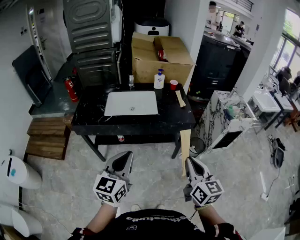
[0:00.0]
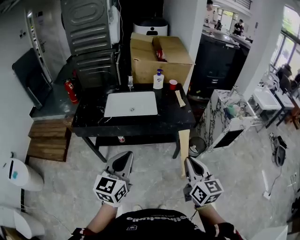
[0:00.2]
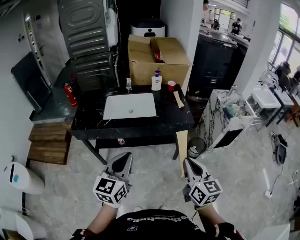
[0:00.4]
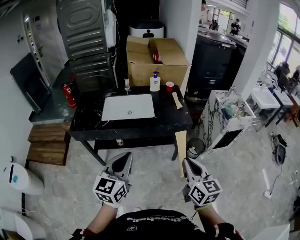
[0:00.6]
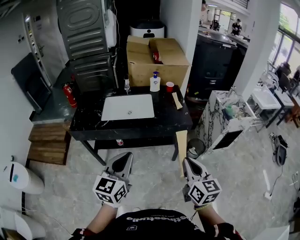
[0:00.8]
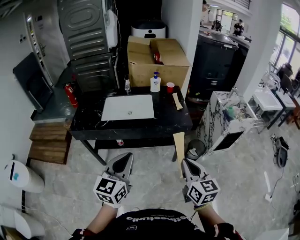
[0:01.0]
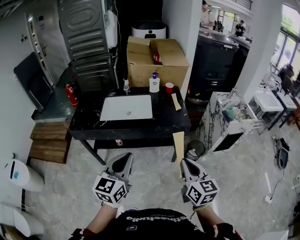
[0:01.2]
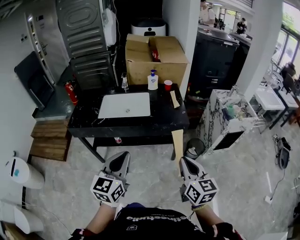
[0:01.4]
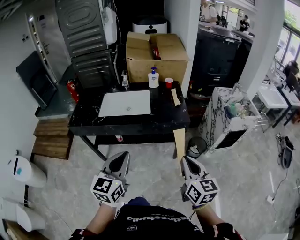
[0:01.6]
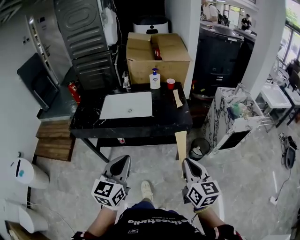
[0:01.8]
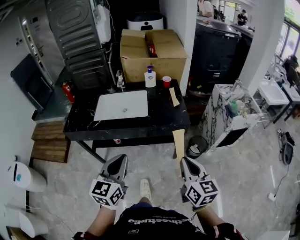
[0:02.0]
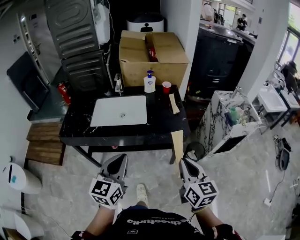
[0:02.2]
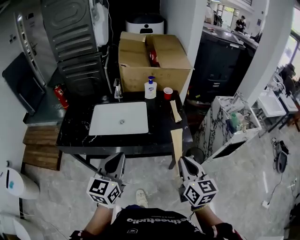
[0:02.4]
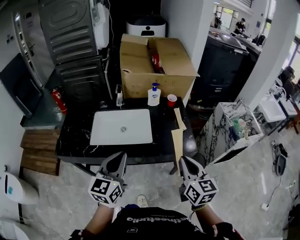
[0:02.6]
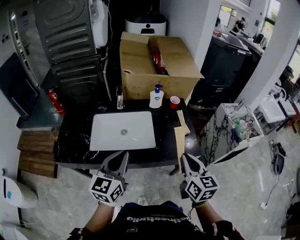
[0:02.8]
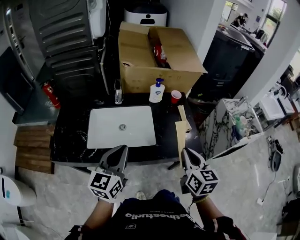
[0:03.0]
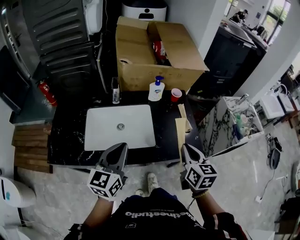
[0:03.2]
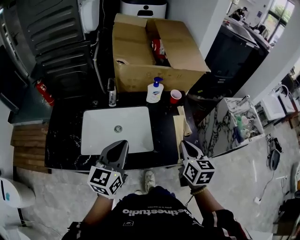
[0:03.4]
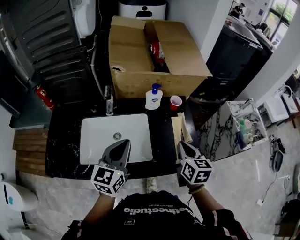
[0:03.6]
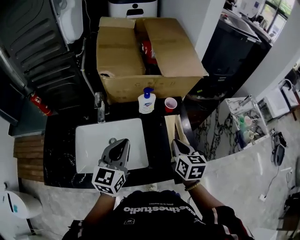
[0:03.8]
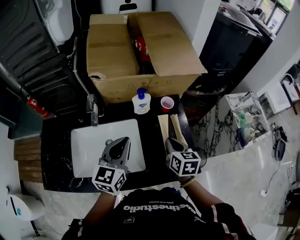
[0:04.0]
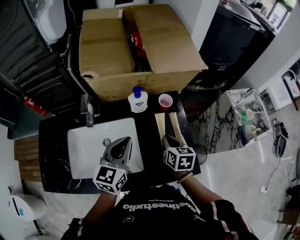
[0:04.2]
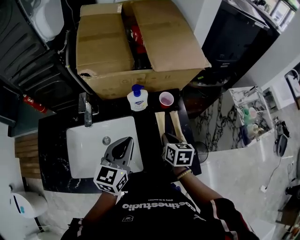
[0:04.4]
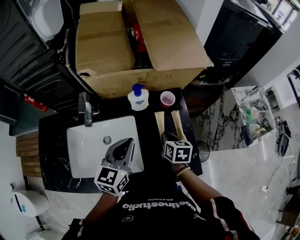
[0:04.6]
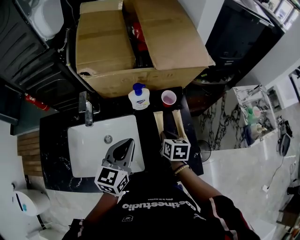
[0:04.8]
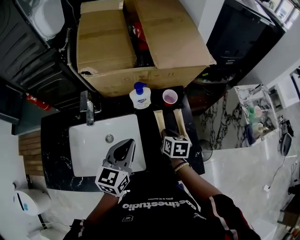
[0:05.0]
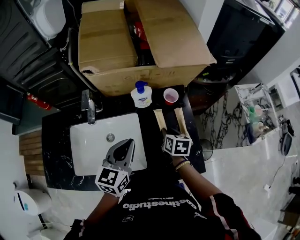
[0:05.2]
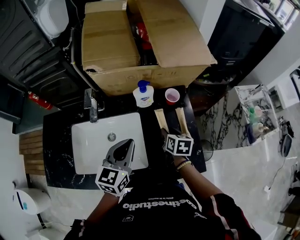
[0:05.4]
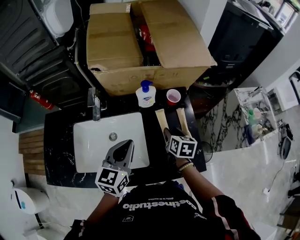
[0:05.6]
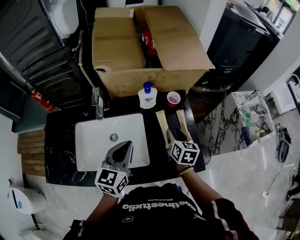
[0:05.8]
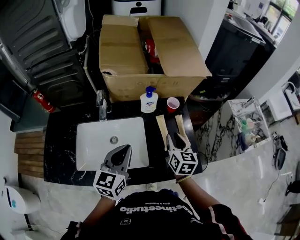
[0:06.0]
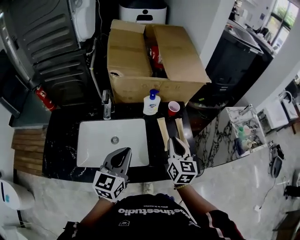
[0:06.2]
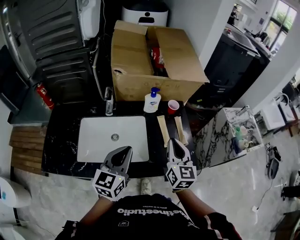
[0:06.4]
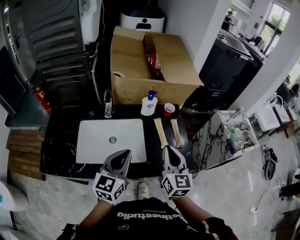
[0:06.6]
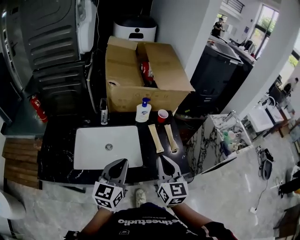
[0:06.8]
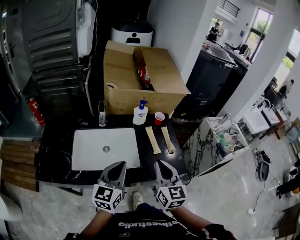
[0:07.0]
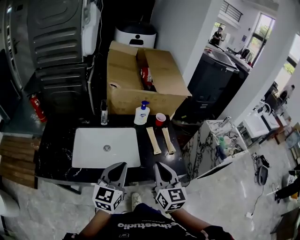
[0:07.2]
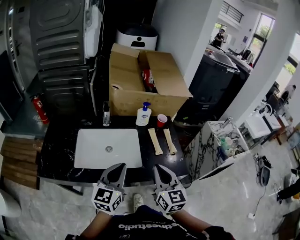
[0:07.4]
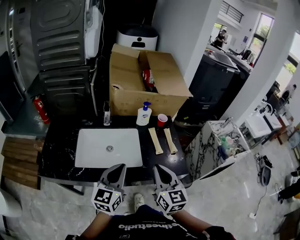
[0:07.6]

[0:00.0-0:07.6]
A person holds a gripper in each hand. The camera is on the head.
0:00.0 to 0:01.6: The grippers both shift to the right by about 10 cm.
0:01.6 to 0:03.0: The two grippers go some 35 cm forward.
0:03.0 to 0:04.6: The right gripper moves forward and downward, roughly 35 cm, and swivels some 30 degrees. The left gripper goes roughly 30 cm forward and to the right.
0:04.6 to 0:06.0: The left gripper goes roughly 10 cm backward and to the left, while the right gripper goes roughly 10 cm upward and backward, rotates approximately 20 degrees, and opens.
0:06.0 to 0:07.6: The right gripper moves backward and upward, about 25 cm, turns by about 20 degrees, and closes up; the left gripper shifts about 15 cm backward.

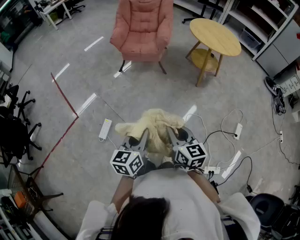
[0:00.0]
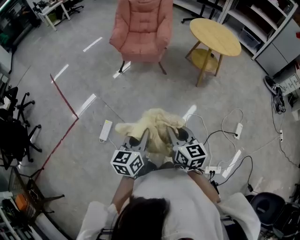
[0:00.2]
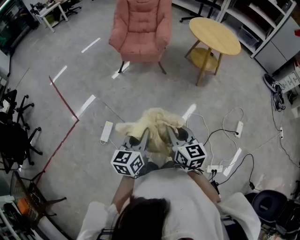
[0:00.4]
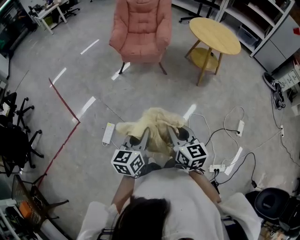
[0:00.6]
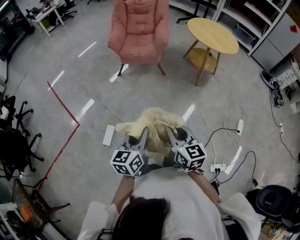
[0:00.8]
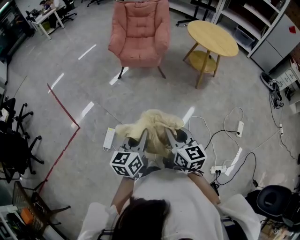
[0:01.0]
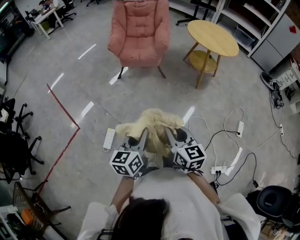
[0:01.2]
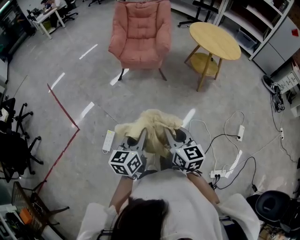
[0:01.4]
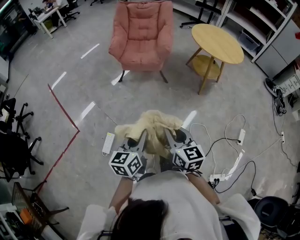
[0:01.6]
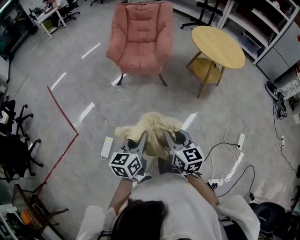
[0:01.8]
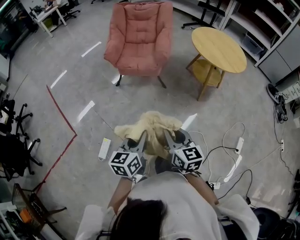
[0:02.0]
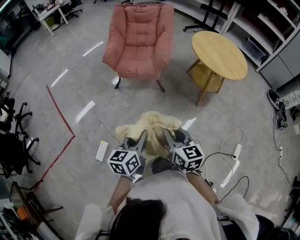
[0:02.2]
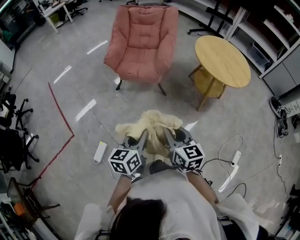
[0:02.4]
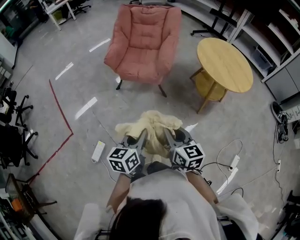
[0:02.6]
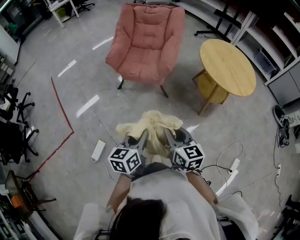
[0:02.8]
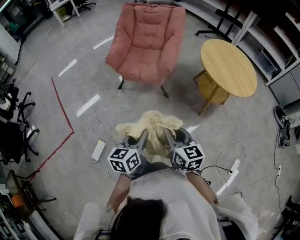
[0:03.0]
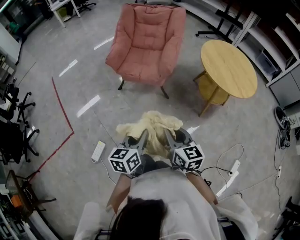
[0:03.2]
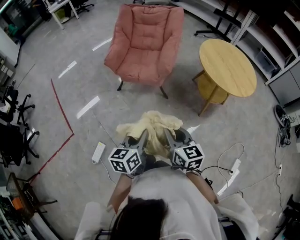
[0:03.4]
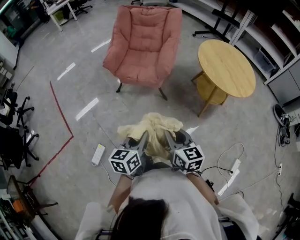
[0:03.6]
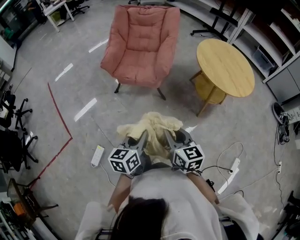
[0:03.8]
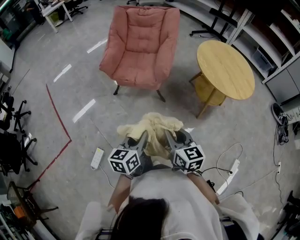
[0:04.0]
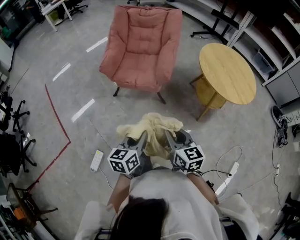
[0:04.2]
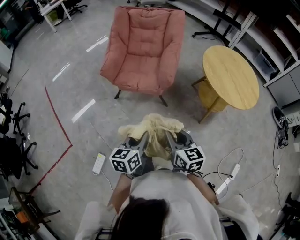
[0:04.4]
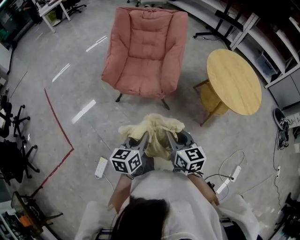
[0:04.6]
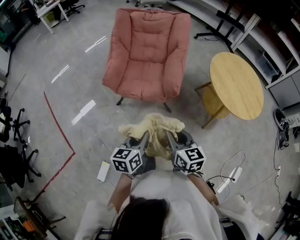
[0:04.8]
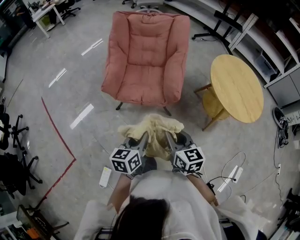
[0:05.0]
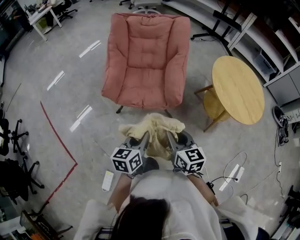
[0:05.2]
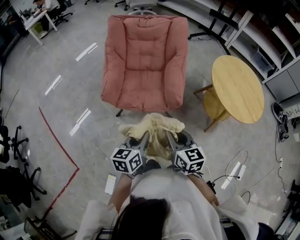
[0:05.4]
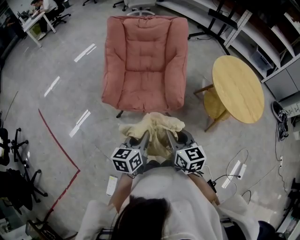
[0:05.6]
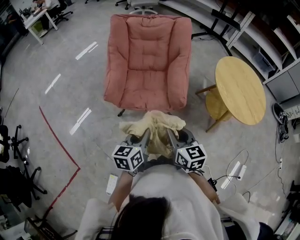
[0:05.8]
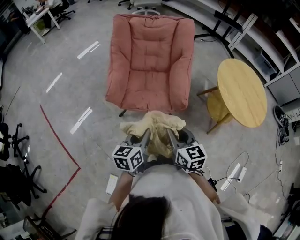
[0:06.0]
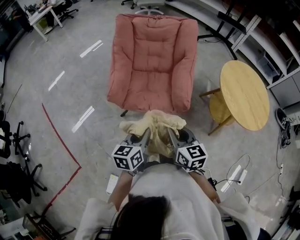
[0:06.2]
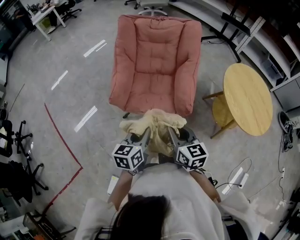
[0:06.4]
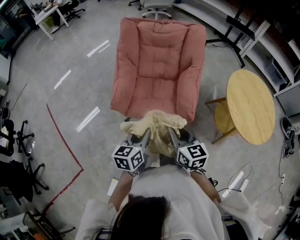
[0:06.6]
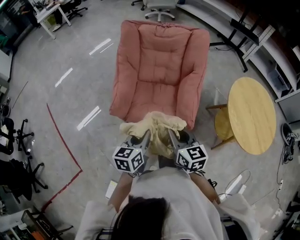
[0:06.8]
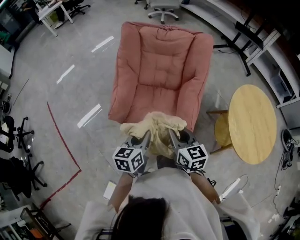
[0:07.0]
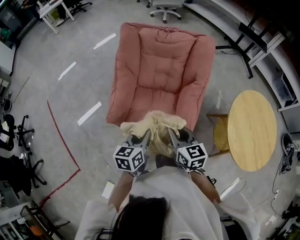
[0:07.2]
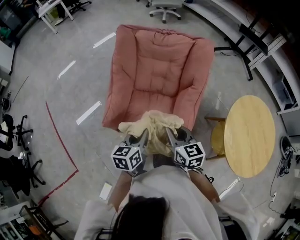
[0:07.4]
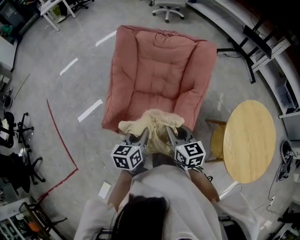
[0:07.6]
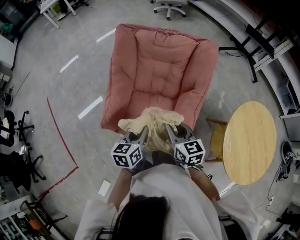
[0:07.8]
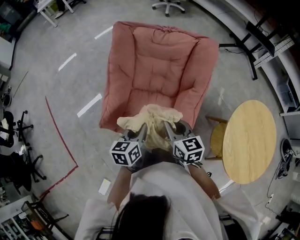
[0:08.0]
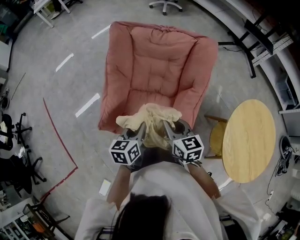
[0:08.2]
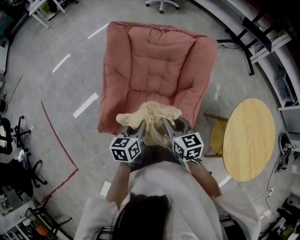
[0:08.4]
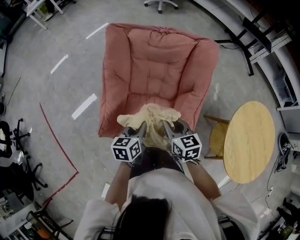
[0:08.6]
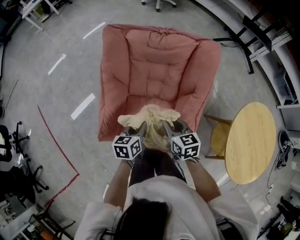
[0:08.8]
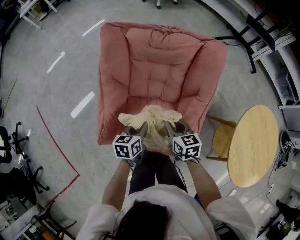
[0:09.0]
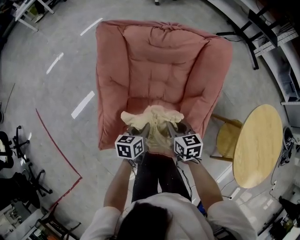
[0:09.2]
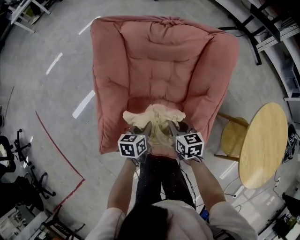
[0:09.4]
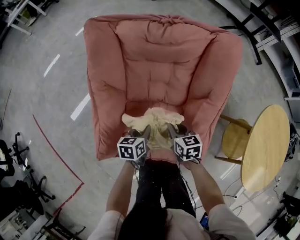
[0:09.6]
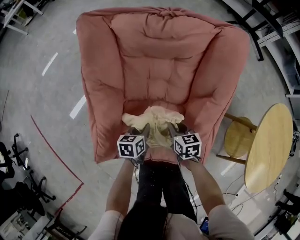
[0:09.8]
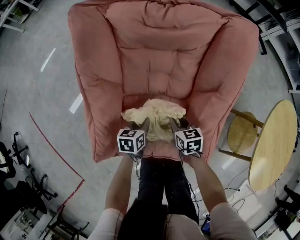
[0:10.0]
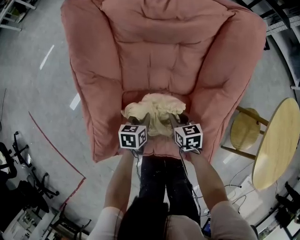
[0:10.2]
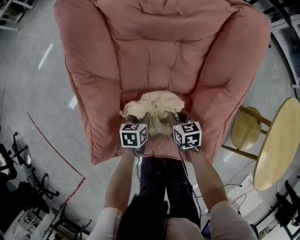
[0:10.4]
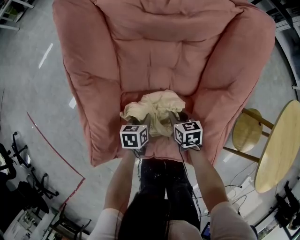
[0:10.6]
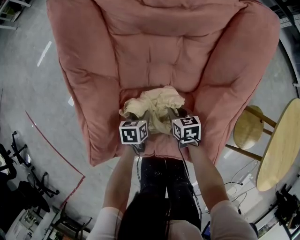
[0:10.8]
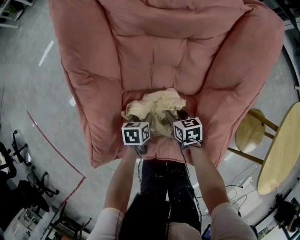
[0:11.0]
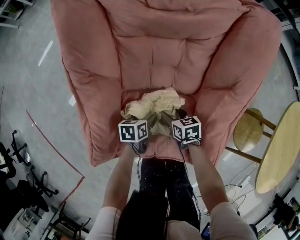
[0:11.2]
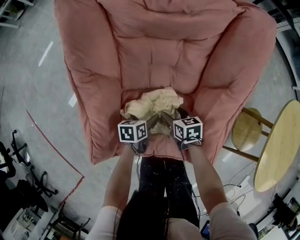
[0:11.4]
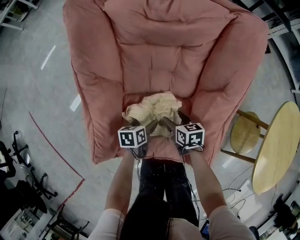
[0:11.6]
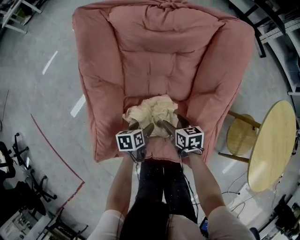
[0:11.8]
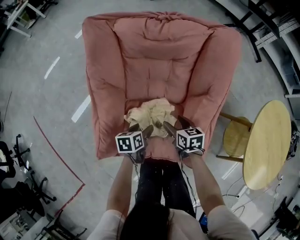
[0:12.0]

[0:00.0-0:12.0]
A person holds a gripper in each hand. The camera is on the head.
0:00.0 to 0:01.6: Both grippers travel together forward and to the left, some 10 cm.
0:01.6 to 0:03.0: The grippers both shift forward and to the right by roughly 25 cm.
0:03.0 to 0:04.4: Both grippers move forward, some 15 cm.
0:04.4 to 0:06.0: Both grippers move forward and to the left, about 25 cm.
0:06.0 to 0:07.6: Both grippers travel together forward, some 30 cm.
0:07.6 to 0:09.0: The grippers both shift forward and downward by approximately 20 cm.
0:09.0 to 0:10.4: Both grippers move downward, about 25 cm.
0:10.4 to 0:12.0: The grippers both shift upward by about 10 cm. The left gripper opens its fingers, while the right gripper opens up.

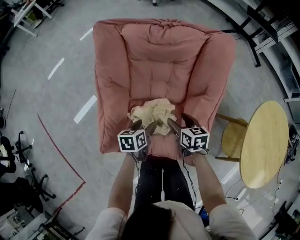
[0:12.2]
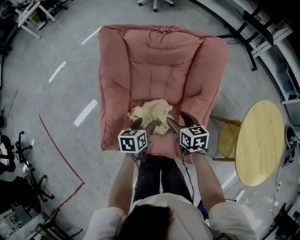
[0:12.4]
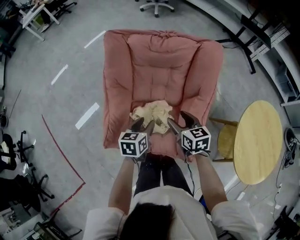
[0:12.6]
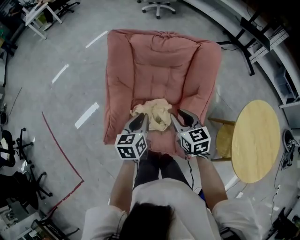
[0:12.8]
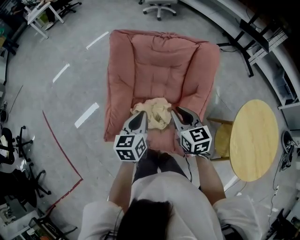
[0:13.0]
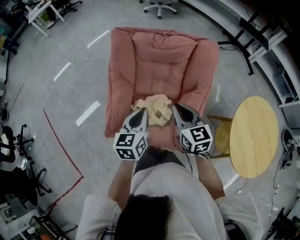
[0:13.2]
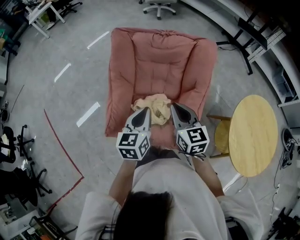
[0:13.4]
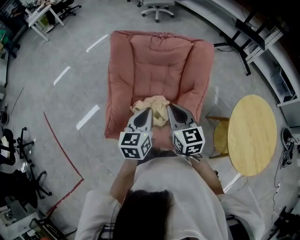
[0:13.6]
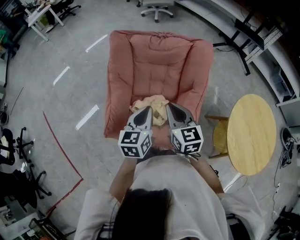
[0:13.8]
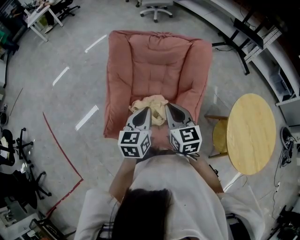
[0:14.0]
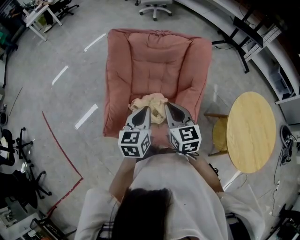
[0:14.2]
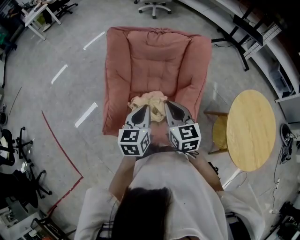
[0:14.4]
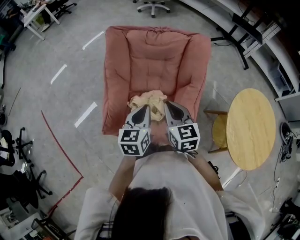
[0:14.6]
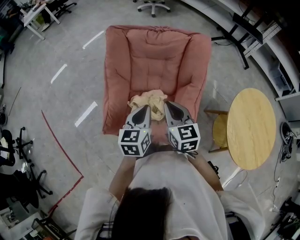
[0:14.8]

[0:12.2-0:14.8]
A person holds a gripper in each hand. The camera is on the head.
0:12.2 to 0:13.4: The grippers both shift upward by approximately 25 cm. The left gripper rotates about 30 degrees, and closes up. Meanwhile the right gripper swivels about 30 degrees, and closes up.
0:13.4 to 0:14.8: The grippers stay close to where they were, moving slightly.

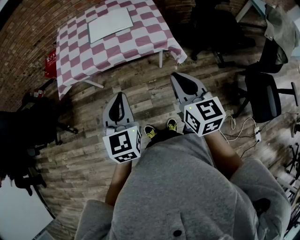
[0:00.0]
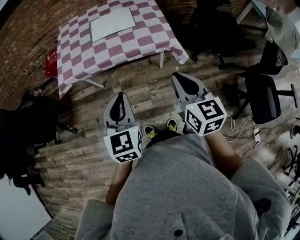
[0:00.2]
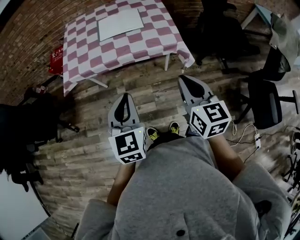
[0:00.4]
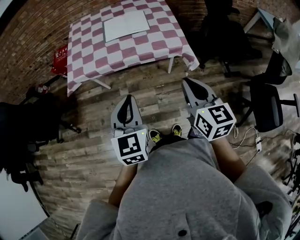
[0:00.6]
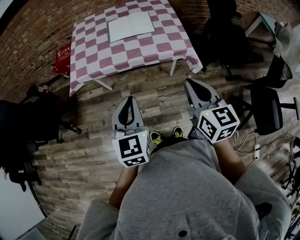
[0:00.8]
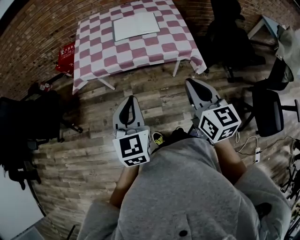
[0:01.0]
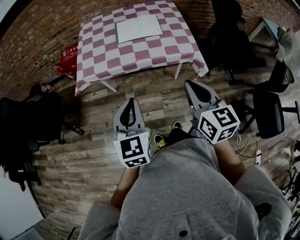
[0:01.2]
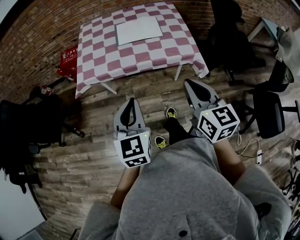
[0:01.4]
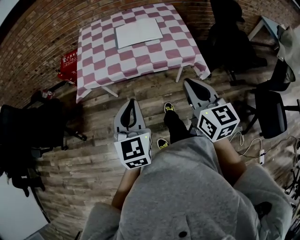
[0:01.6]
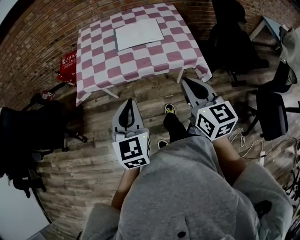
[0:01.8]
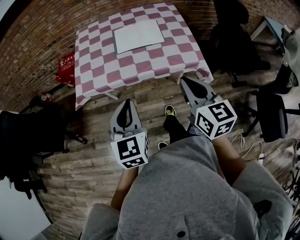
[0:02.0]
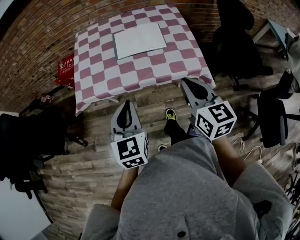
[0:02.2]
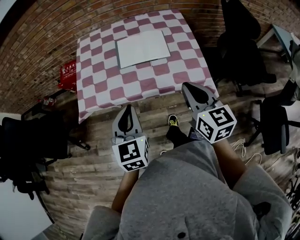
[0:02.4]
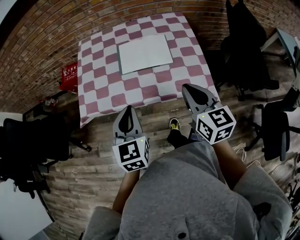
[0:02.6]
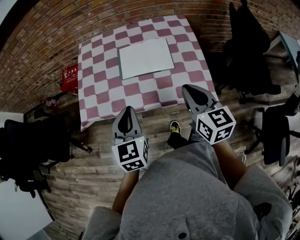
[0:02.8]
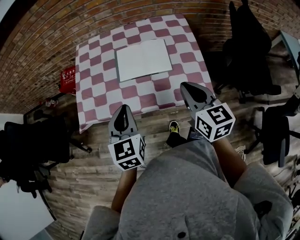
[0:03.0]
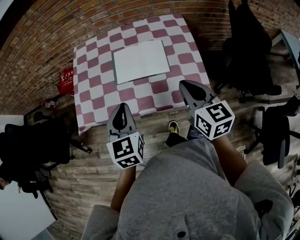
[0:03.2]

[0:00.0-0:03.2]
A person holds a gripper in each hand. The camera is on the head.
0:00.0 to 0:01.6: The grippers both shift to the left by about 10 cm.
0:01.6 to 0:03.2: The grippers both shift forward by approximately 25 cm.
